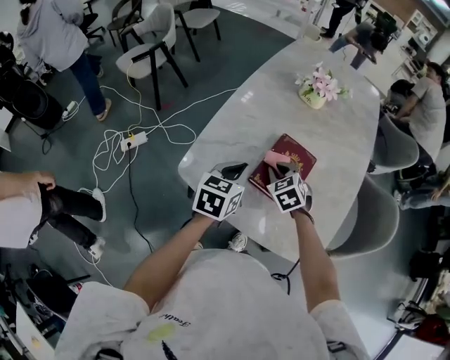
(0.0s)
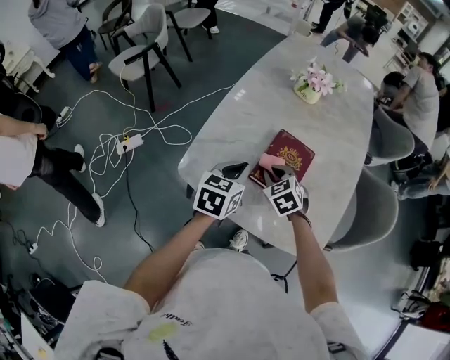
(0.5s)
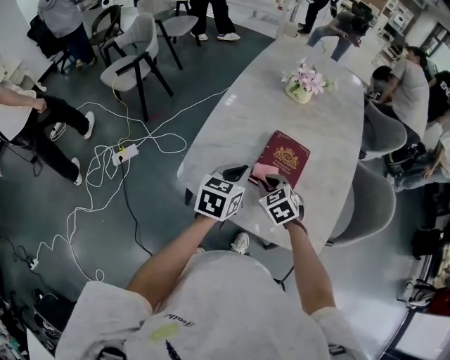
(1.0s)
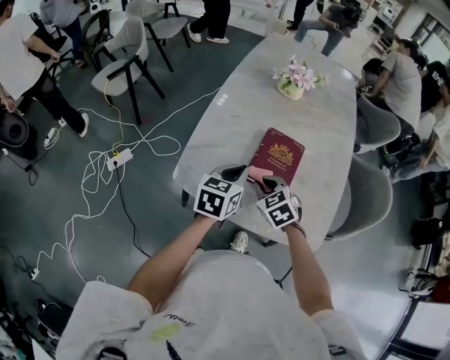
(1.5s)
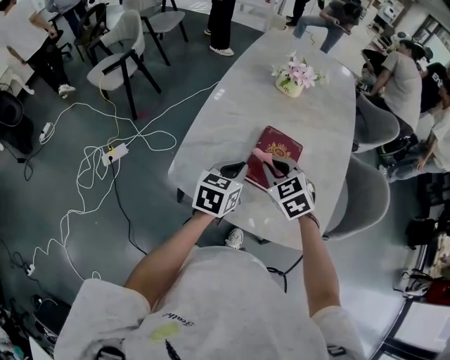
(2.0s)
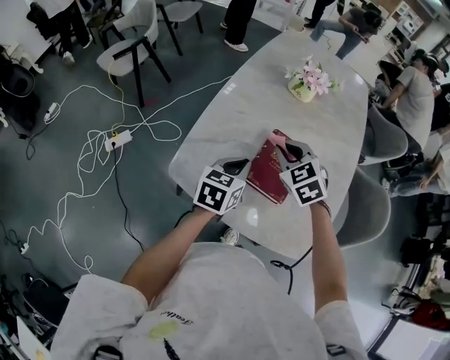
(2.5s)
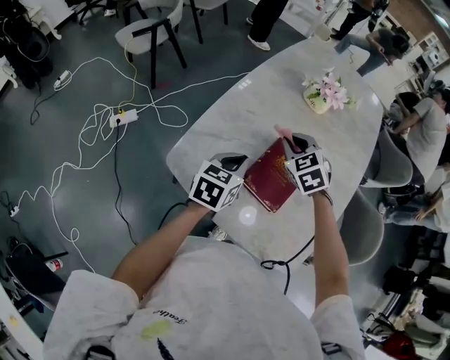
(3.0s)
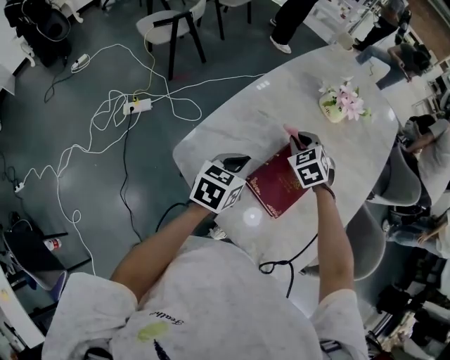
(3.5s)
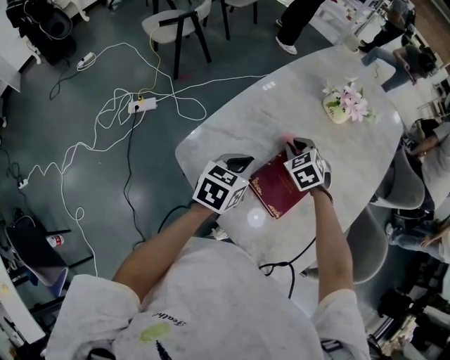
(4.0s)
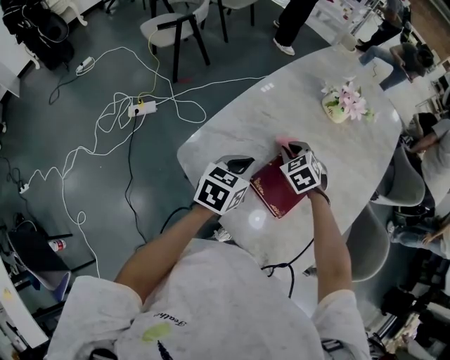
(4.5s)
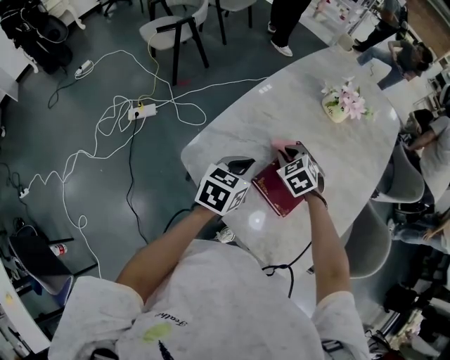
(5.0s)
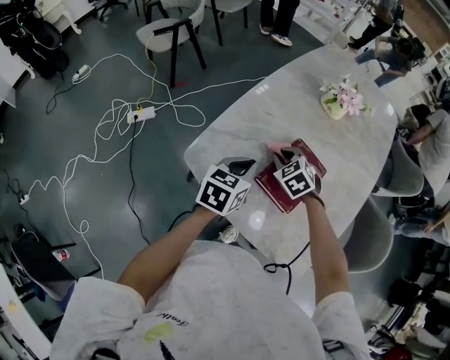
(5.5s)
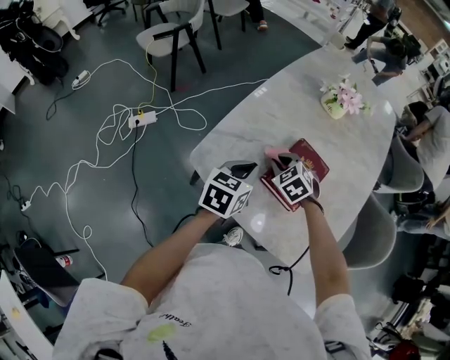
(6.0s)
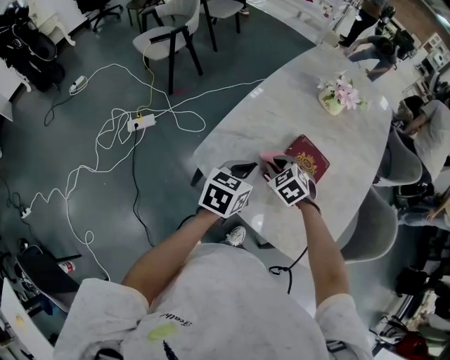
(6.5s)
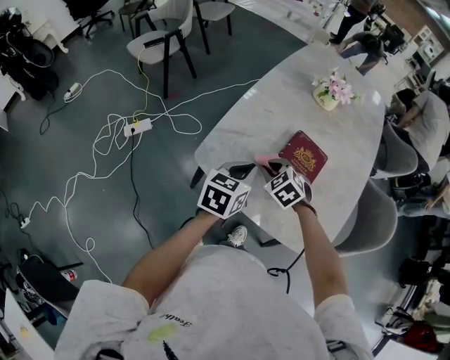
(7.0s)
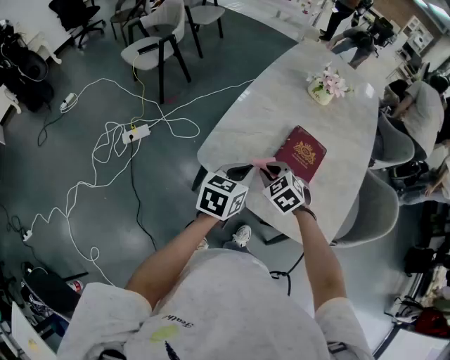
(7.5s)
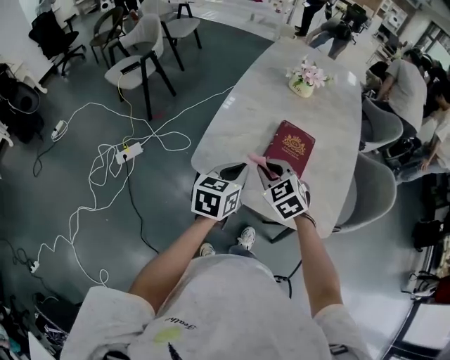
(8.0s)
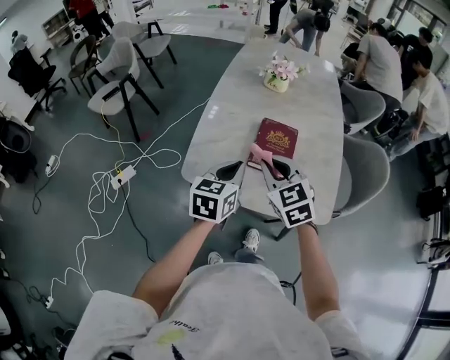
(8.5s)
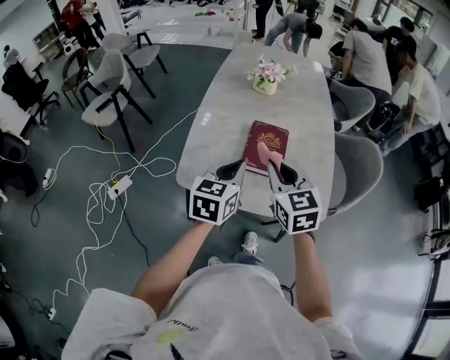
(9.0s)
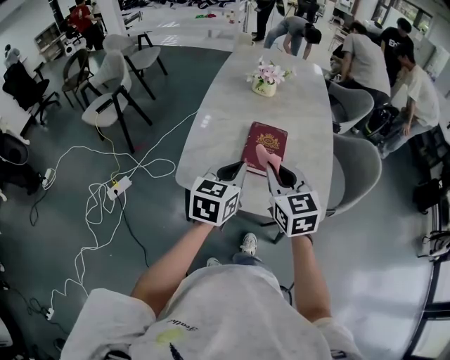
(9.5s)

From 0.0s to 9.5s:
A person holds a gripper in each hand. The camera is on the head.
From 0.0s to 2.0s: The right gripper moves upward, approximately 10 cm.
From 2.0s to 4.0s: The right gripper is displaced forward and downward by roughly 15 cm, and swivels some 20 degrees.
From 4.0s to 5.5s: The right gripper shifts roughly 5 cm backward.
From 5.5s to 7.5s: The left gripper goes about 10 cm backward. The right gripper is displaced backward and to the left by about 15 cm.
From 7.5s to 9.5s: The left gripper goes about 10 cm upward and to the right, while the right gripper is displaced upward and to the right by roughly 20 cm, and points its fingers some 30 degrees further upward.

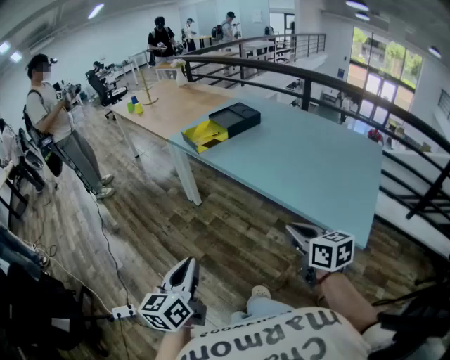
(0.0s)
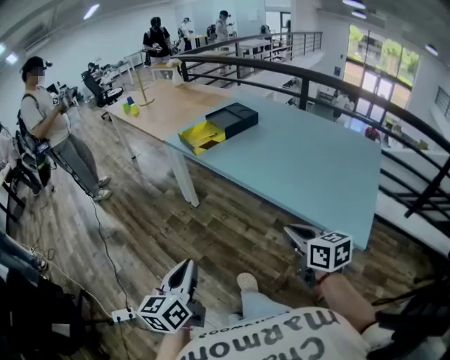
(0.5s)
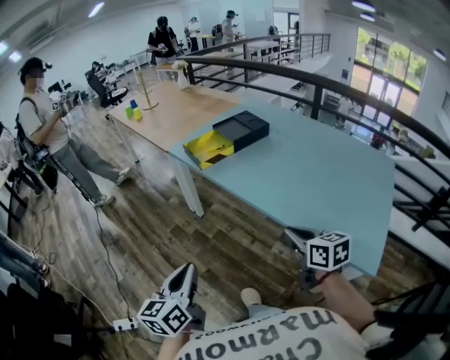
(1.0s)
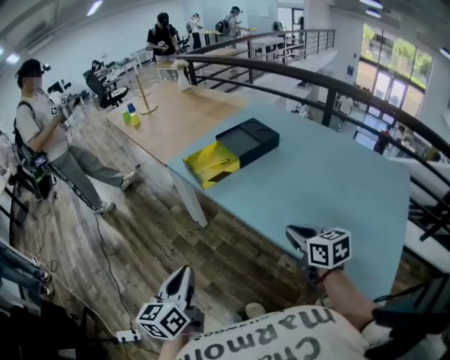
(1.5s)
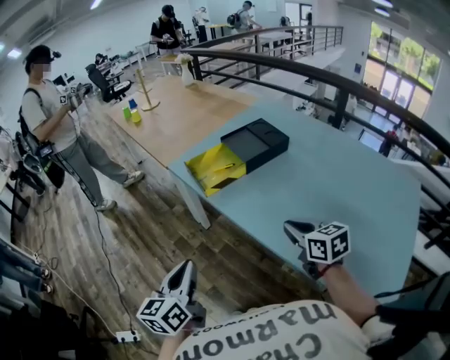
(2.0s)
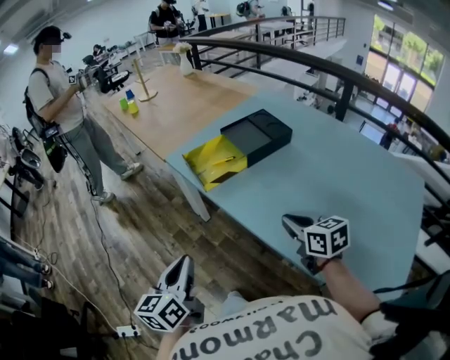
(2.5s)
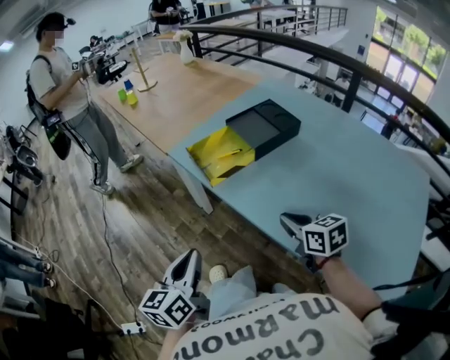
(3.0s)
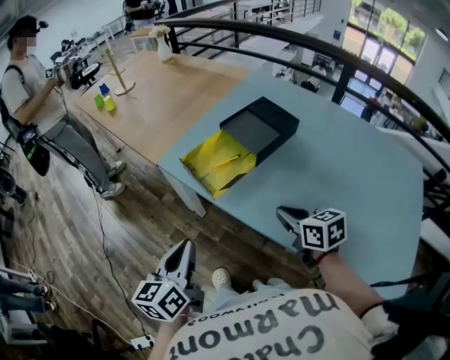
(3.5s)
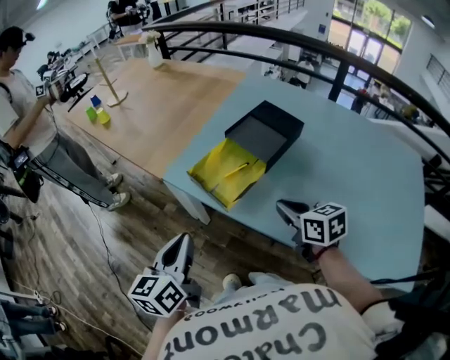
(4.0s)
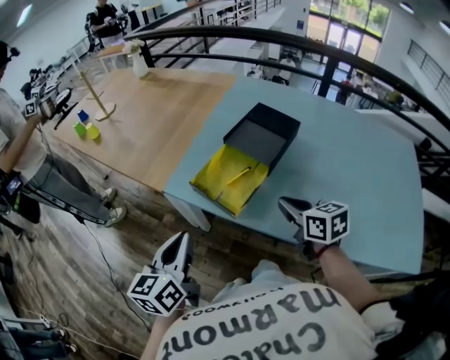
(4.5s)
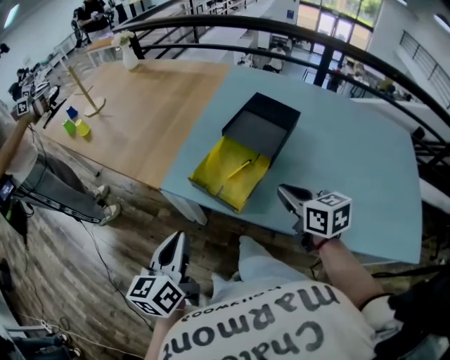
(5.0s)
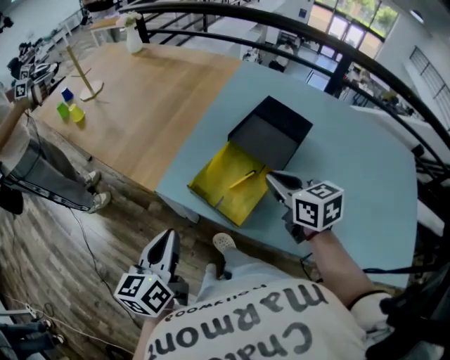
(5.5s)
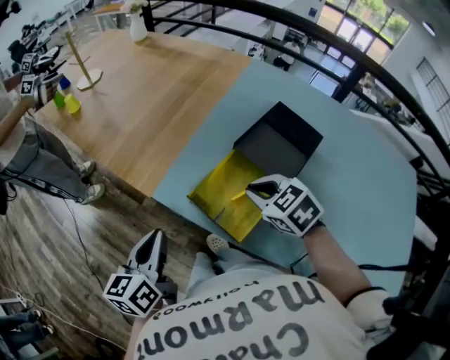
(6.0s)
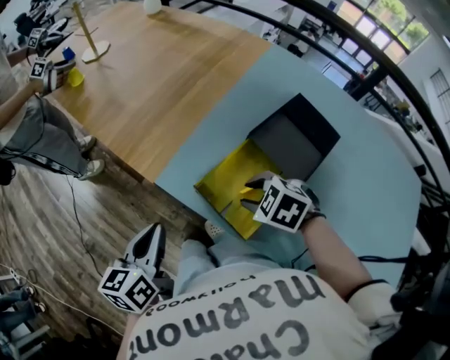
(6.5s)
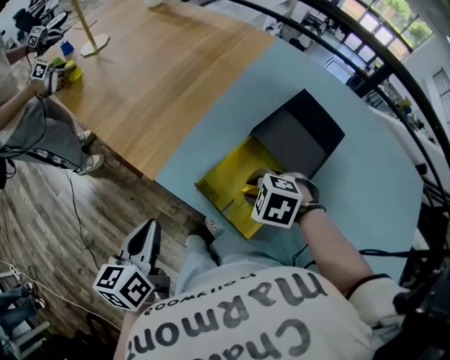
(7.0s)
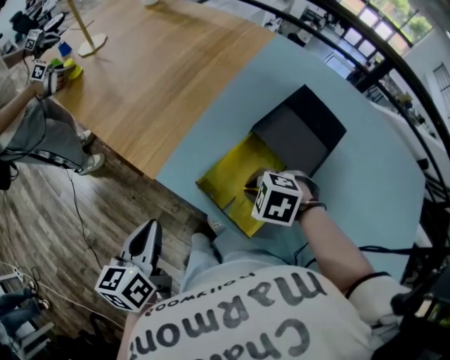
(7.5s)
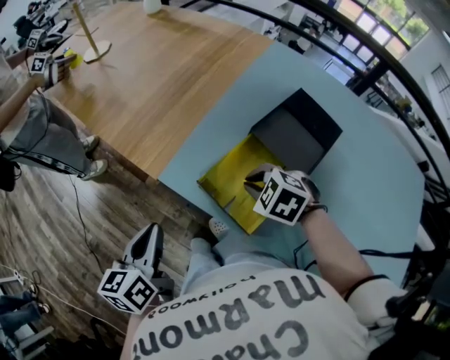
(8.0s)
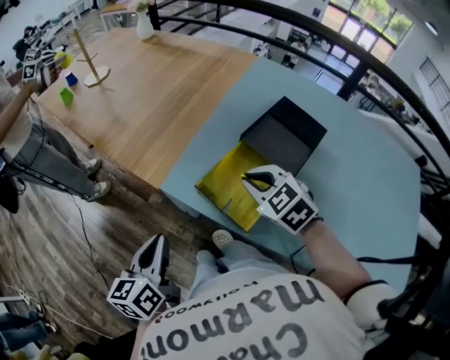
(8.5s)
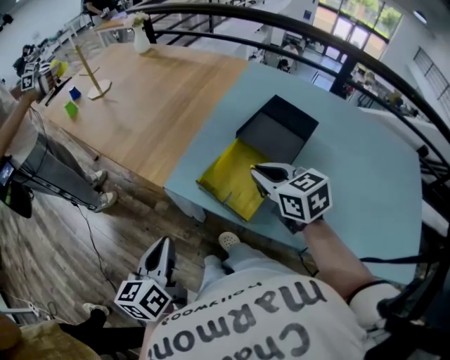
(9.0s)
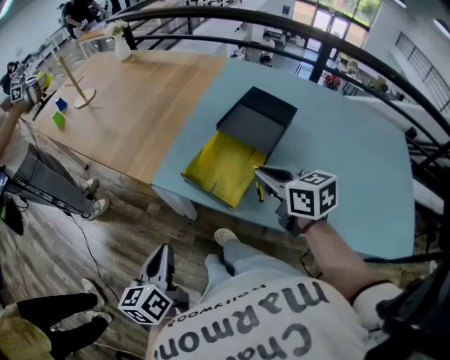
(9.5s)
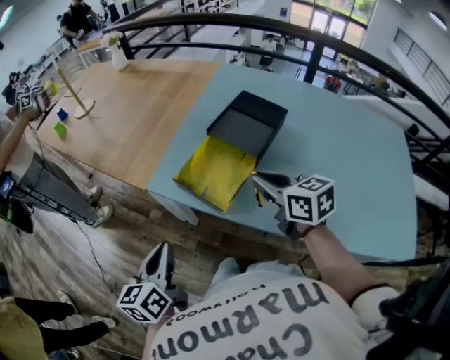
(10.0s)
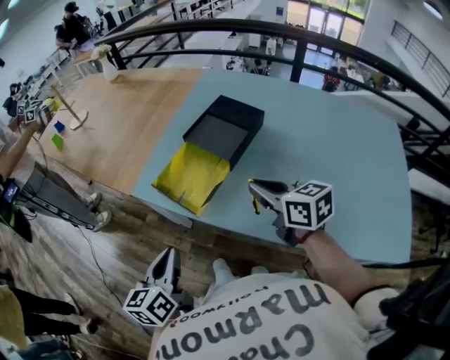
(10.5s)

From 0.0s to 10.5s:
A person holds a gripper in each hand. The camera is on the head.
From 0.0s to 2.0s: Both grippers travel together forward, about 30 cm.
From 2.0s to 4.0s: The left gripper travels forward by roughly 20 cm, while the right gripper heads forward and to the left, covering approximately 20 cm.
From 4.0s to 6.5s: The grippers both shift forward, to the left and downward by some 20 cm. The right gripper tilts its fingers roughly 40 degrees downward, and opens its fingers.
From 6.5s to 8.5s: The right gripper heads upward, covering some 5 cm, rotates some 30 degrees, and closes its fingers.
From 8.5s to 10.5s: Both grippers travel together to the right and backward, about 20 cm. The right gripper rolls clockwise, seen from behind, by roughly 40 degrees.

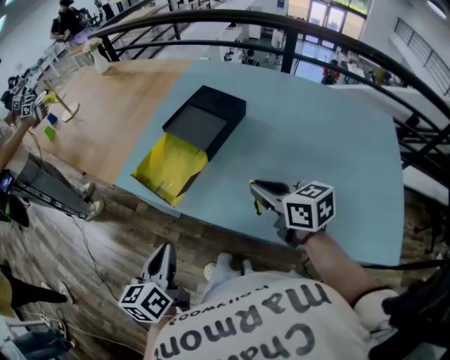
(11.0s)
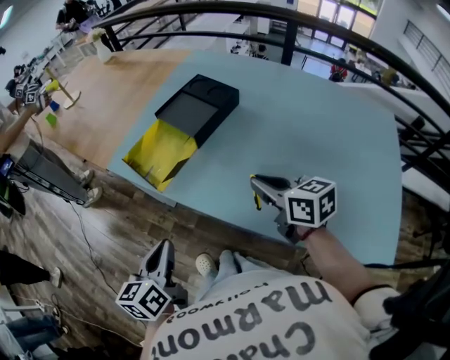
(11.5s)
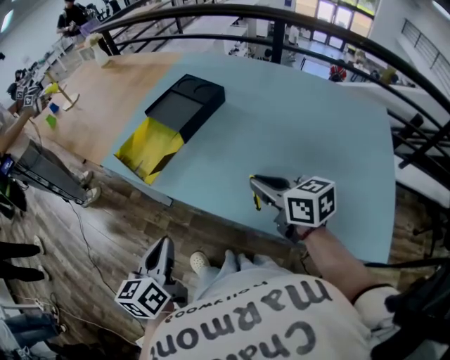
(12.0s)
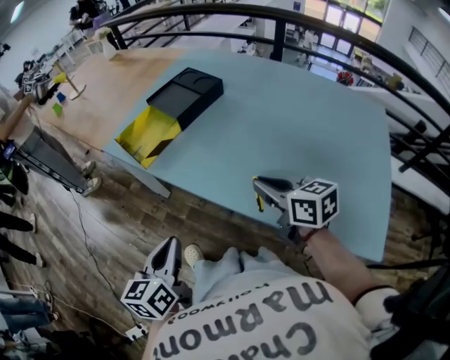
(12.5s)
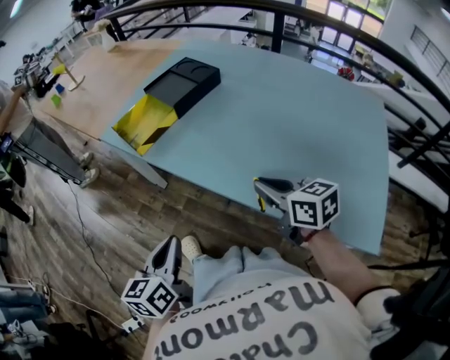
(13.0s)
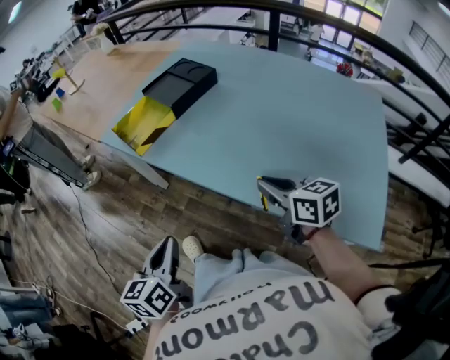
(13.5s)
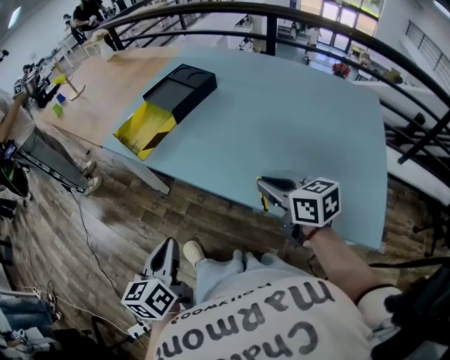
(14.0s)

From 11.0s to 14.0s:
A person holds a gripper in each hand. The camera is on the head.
From 11.0s to 12.5s: Both grippers travel together backward and to the right, some 15 cm.
From 12.5s to 14.0s: There are only small adjustments of the grippers.

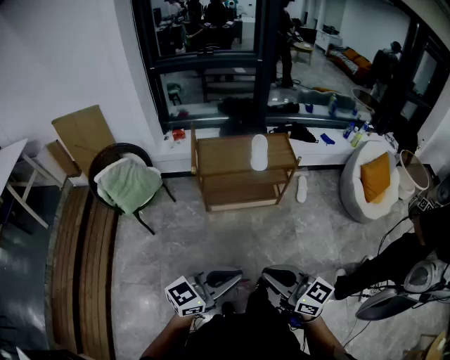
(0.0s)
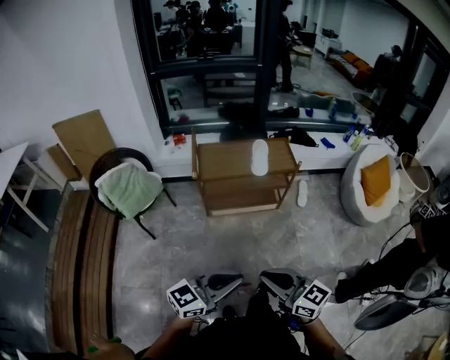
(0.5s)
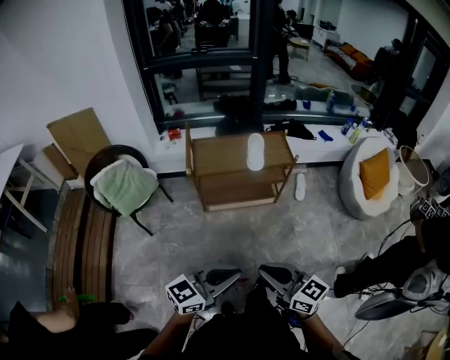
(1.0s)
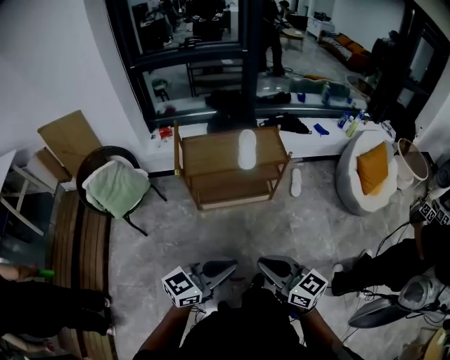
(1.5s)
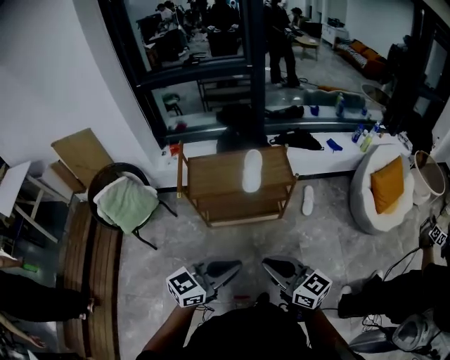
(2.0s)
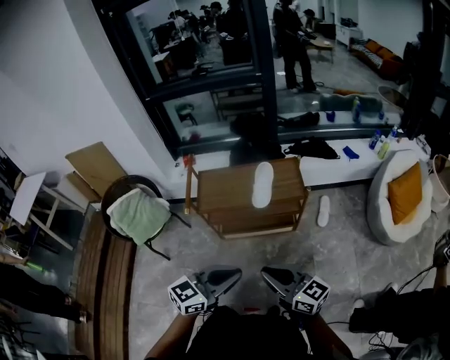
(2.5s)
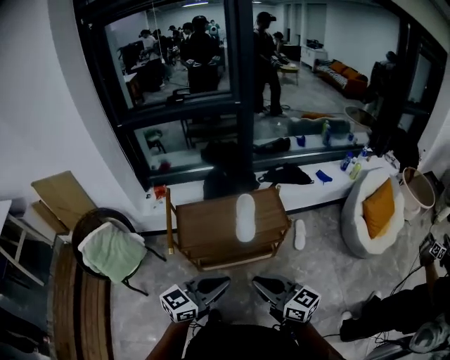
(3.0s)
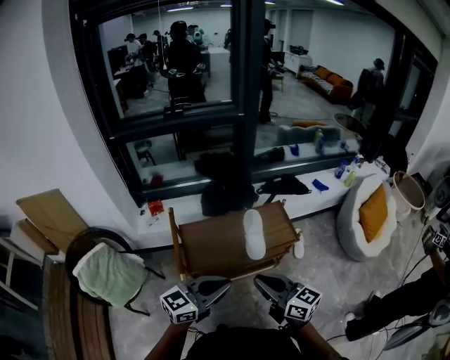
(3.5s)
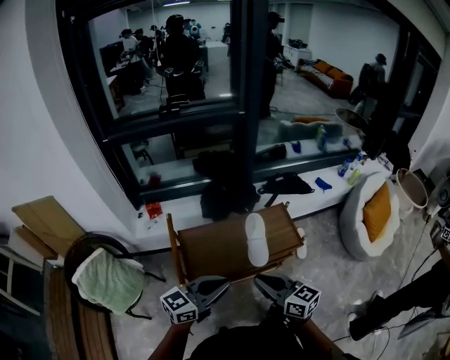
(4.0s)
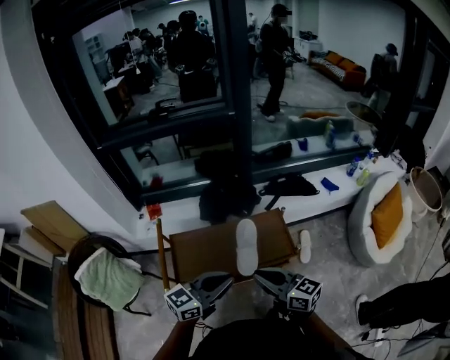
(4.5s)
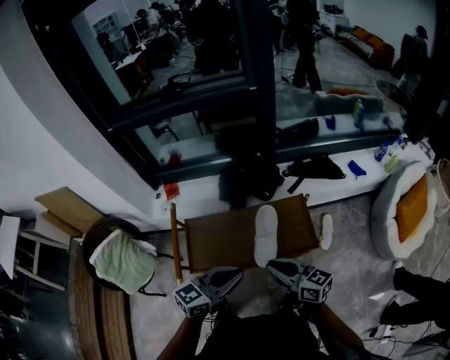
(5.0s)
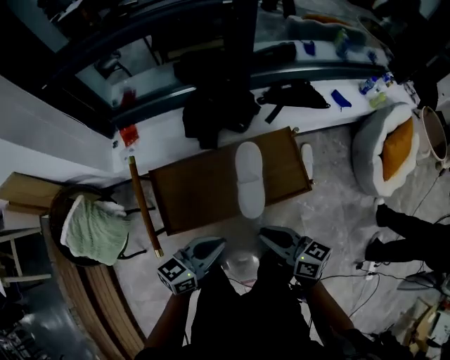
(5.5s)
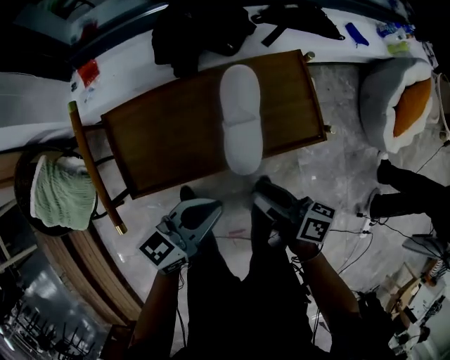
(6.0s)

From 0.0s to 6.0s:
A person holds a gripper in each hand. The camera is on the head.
From 0.0s to 2.0s: The two grippers go roughly 20 cm forward and to the right.
From 2.0s to 4.0s: Both grippers travel together forward and to the left, approximately 35 cm.
From 4.0s to 6.0s: The right gripper heads downward, forward and to the right, covering some 30 cm, rolls clockwise, seen from behind, by some 50 degrees, and opens its fingers. The left gripper is displaced downward, to the right and forward by roughly 25 cm, and turns by approximately 20 degrees.
